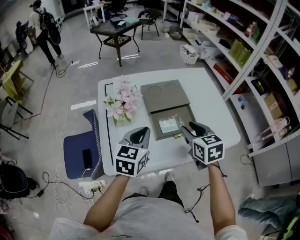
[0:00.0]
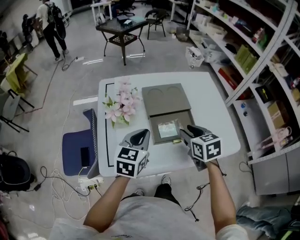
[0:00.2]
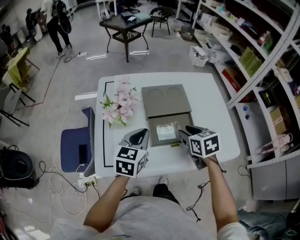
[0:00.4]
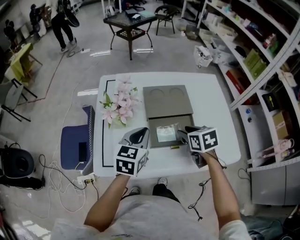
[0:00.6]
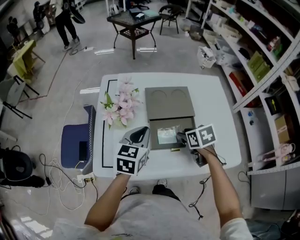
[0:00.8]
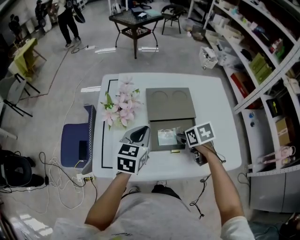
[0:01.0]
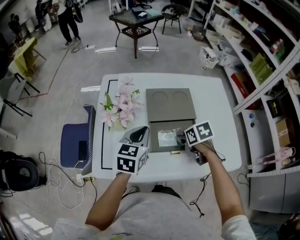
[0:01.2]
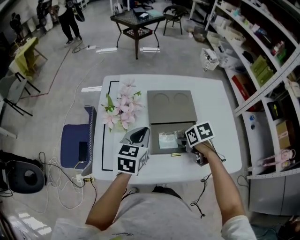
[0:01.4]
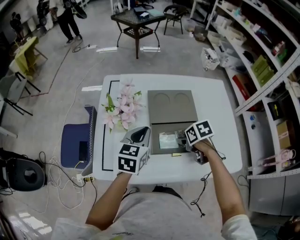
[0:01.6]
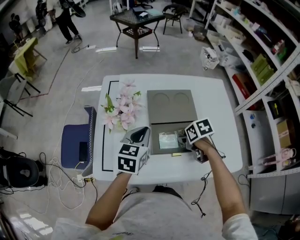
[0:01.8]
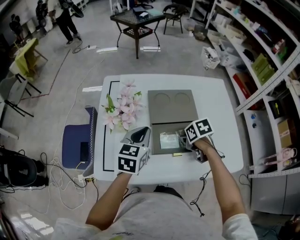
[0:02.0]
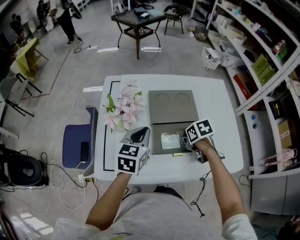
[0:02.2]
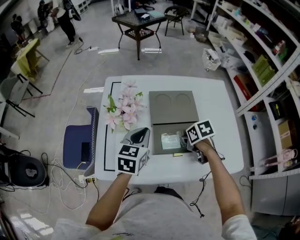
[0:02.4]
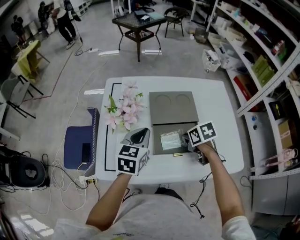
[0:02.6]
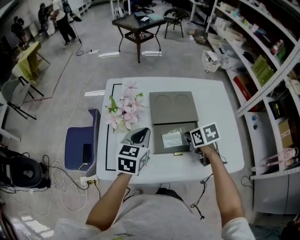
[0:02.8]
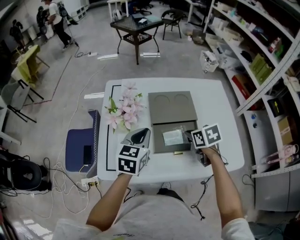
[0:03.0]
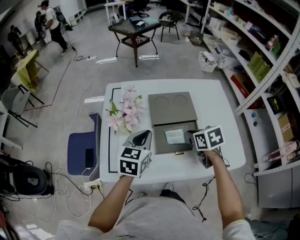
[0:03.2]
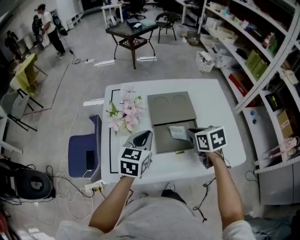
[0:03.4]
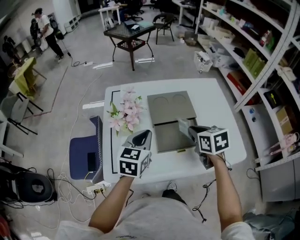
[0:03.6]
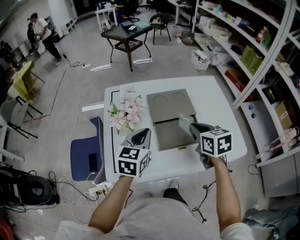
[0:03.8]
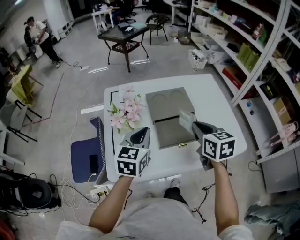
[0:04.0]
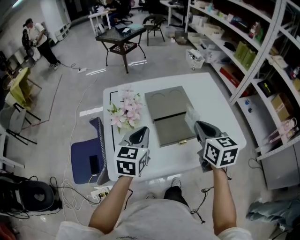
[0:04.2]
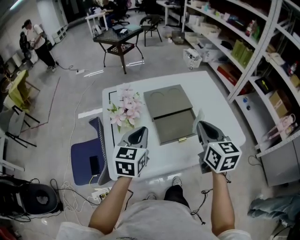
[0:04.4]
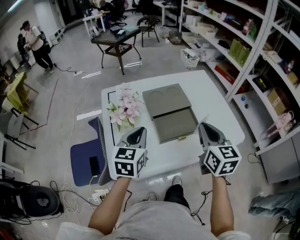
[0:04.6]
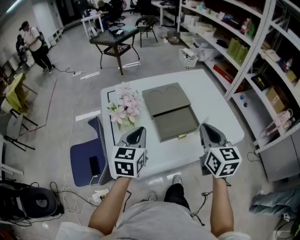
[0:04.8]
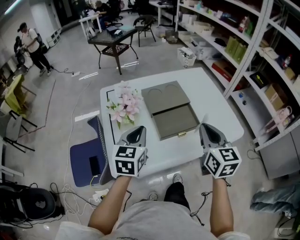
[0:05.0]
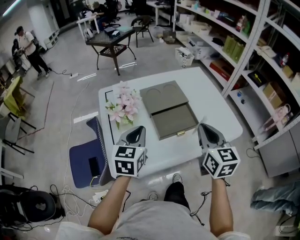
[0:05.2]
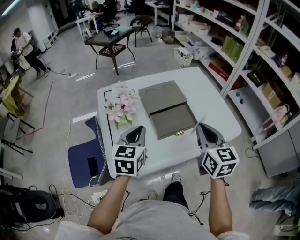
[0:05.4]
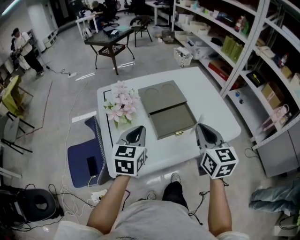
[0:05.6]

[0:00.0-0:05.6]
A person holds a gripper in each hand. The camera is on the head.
0:00.0 to 0:01.4: The left gripper changes place by some 10 cm. Meanwhile the right gripper travels downward by roughly 15 cm, and angles its fingers downward, by roughly 30 degrees.
0:01.4 to 0:02.8: The right gripper closes.
0:02.8 to 0:04.2: The right gripper is displaced upward and backward by some 20 cm, and points its fingers roughly 30 degrees further upward; the left gripper shifts by about 5 cm.
0:04.2 to 0:05.6: The right gripper goes about 5 cm backward.

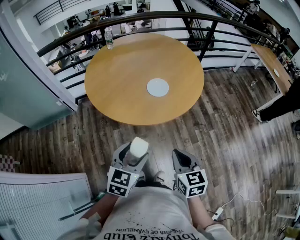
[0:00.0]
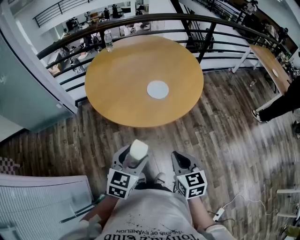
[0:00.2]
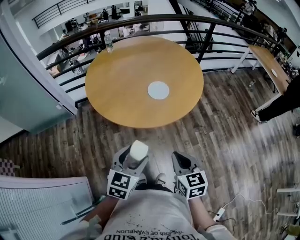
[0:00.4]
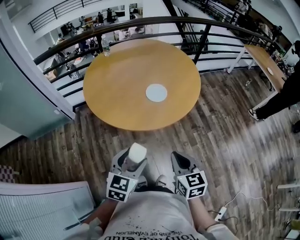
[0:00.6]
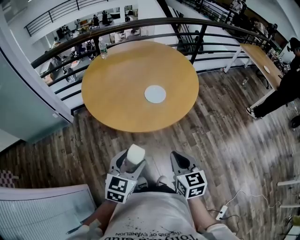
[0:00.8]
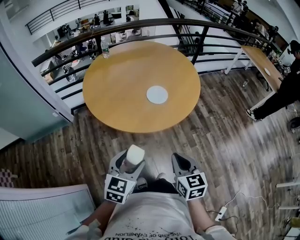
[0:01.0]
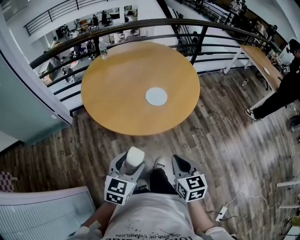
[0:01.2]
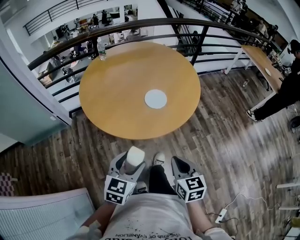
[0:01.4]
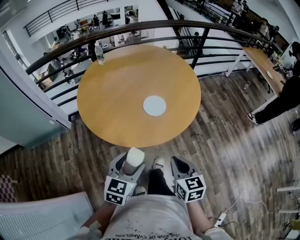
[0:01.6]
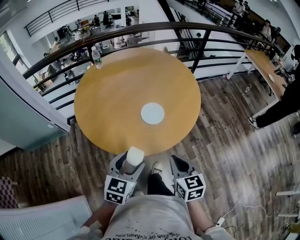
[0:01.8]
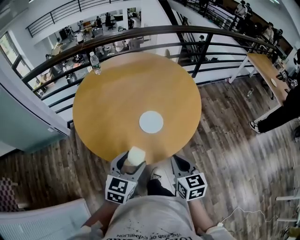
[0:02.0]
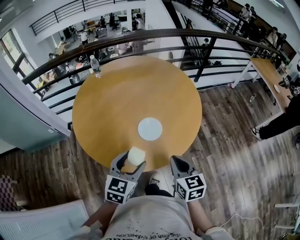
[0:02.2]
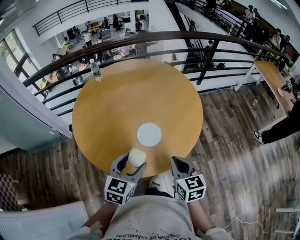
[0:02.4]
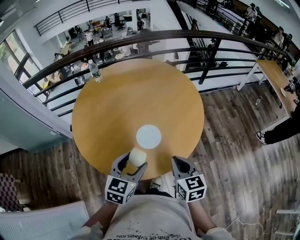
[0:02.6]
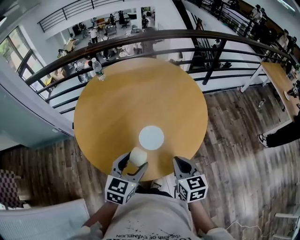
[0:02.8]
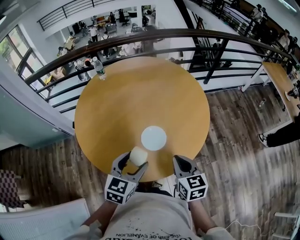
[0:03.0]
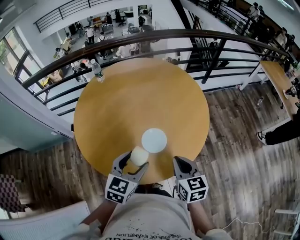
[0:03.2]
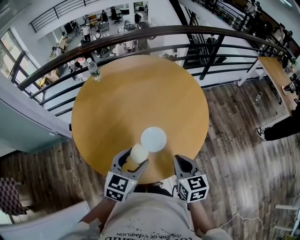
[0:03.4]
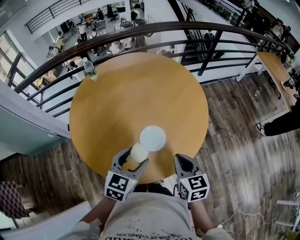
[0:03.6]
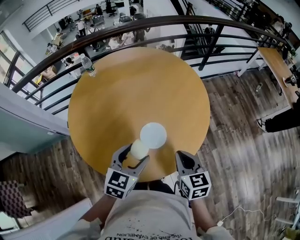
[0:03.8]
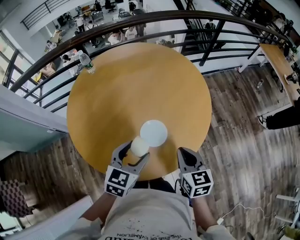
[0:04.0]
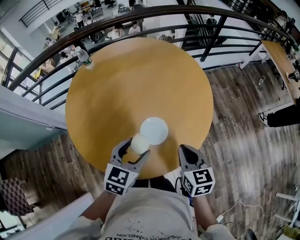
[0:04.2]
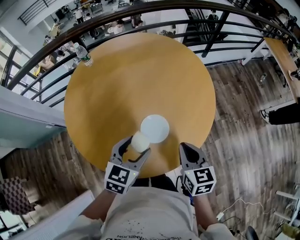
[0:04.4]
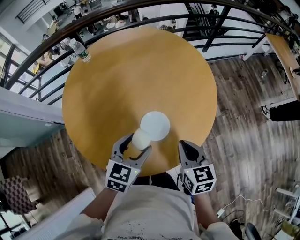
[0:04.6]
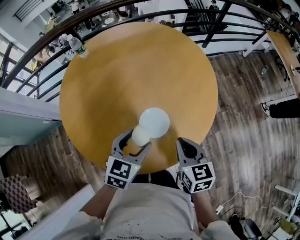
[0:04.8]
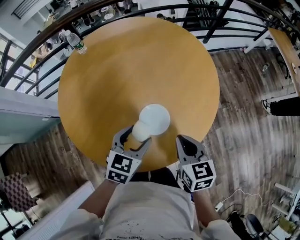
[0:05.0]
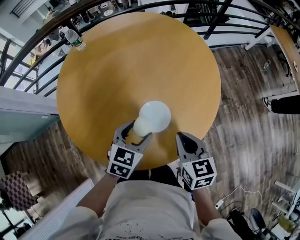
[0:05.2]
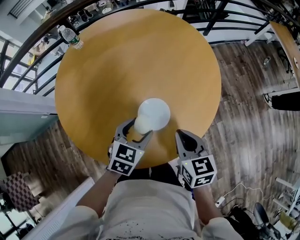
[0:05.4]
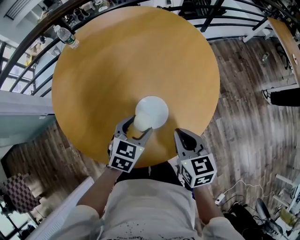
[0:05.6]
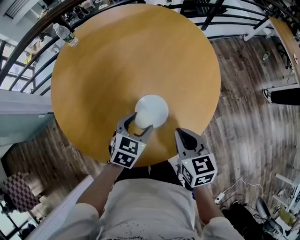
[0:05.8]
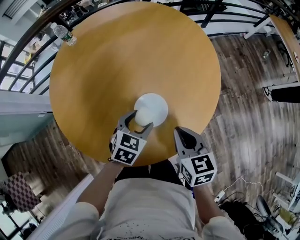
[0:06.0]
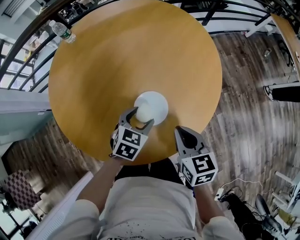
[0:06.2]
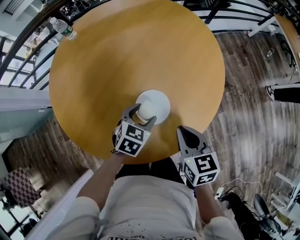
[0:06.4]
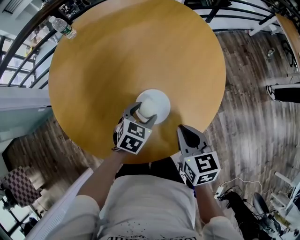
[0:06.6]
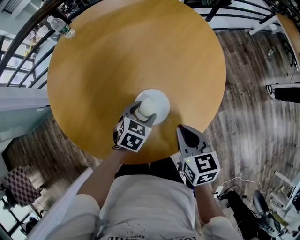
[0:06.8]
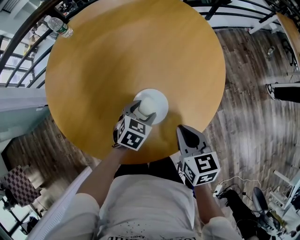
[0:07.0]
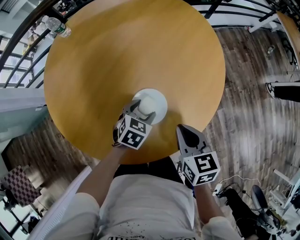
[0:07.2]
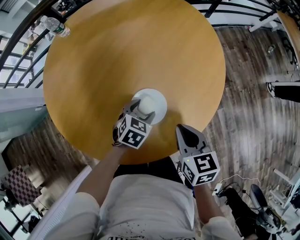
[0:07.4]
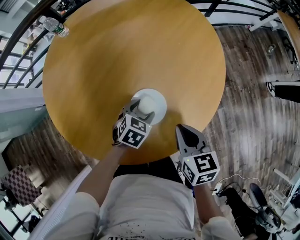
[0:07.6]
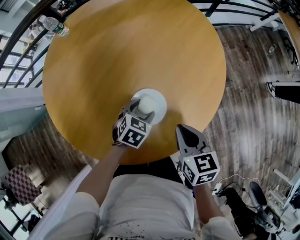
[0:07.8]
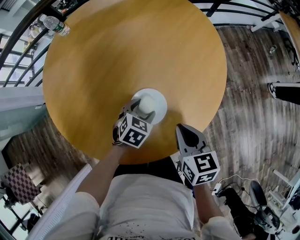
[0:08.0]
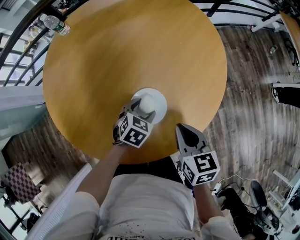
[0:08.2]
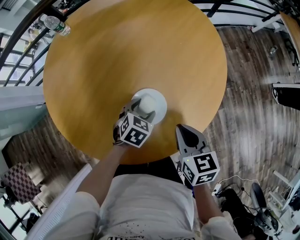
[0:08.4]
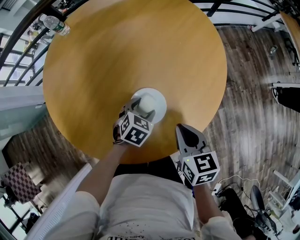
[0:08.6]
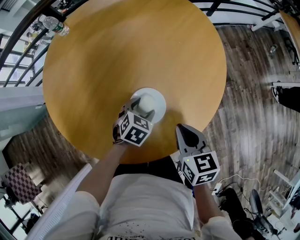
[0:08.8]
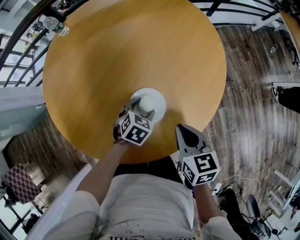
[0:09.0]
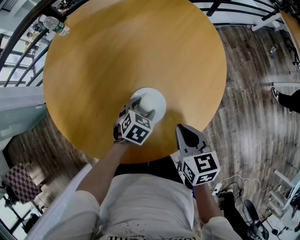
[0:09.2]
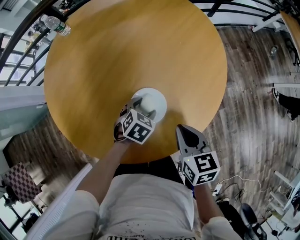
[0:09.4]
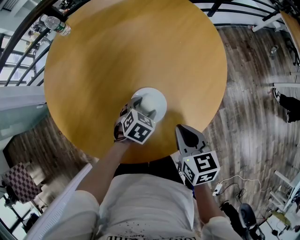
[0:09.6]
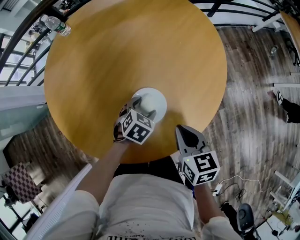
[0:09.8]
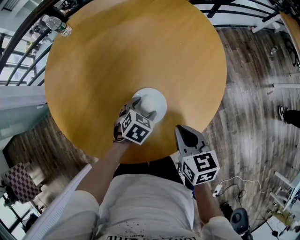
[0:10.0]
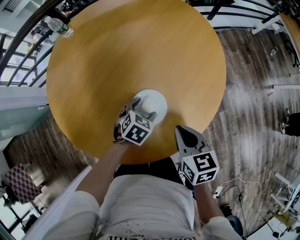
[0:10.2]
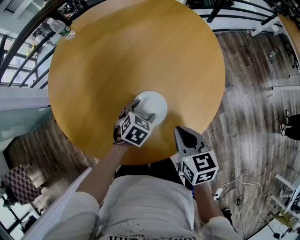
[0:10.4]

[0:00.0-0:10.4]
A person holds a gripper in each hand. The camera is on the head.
0:00.0 to 0:01.4: The left gripper moves approximately 5 cm.
0:01.4 to 0:03.0: The two grippers go about 25 cm forward.
0:03.0 to 0:04.4: The two grippers go about 5 cm forward.
0:04.4 to 0:06.0: The left gripper is displaced downward and forward by some 15 cm; the right gripper travels downward by approximately 5 cm.
0:06.0 to 0:07.4: The left gripper shifts about 10 cm downward.
0:07.4 to 0:10.4: The grippers stay close to where they were, moving slightly.

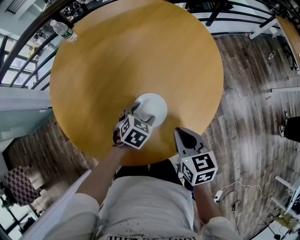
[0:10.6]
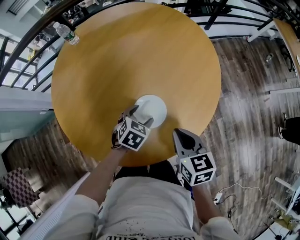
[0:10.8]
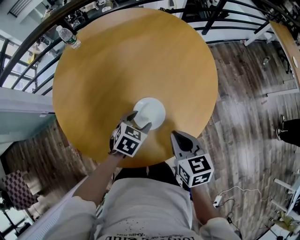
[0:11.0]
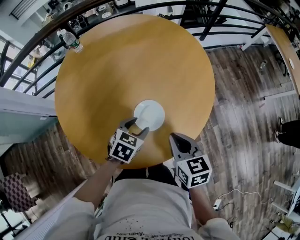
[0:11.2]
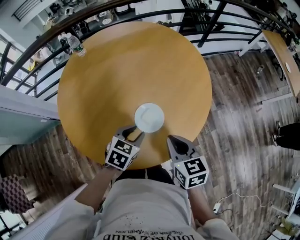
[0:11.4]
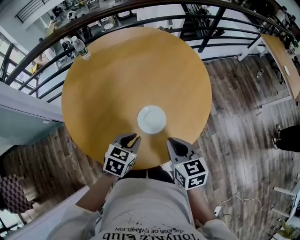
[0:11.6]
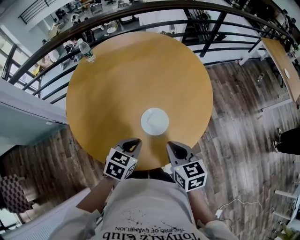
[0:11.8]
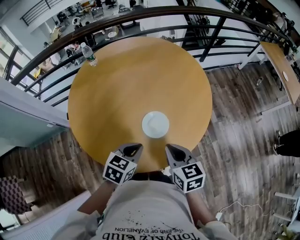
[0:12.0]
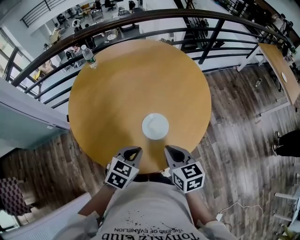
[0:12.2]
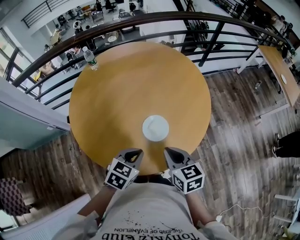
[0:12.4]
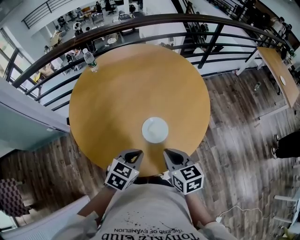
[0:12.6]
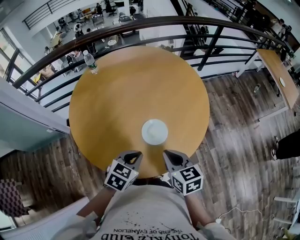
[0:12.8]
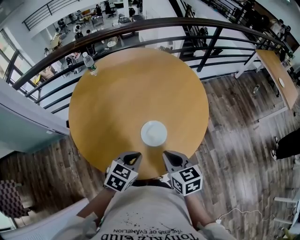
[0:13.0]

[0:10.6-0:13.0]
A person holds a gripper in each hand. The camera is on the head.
0:10.6 to 0:11.8: The right gripper is displaced backward, upward and to the left by about 10 cm; the left gripper goes some 20 cm upward, backward and to the left, and closes its fingers.
0:11.8 to 0:13.0: The grippers move only a little.

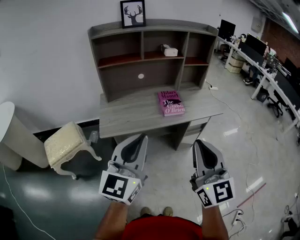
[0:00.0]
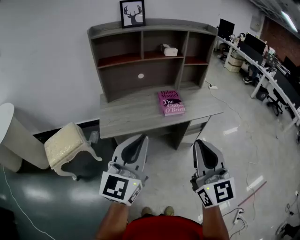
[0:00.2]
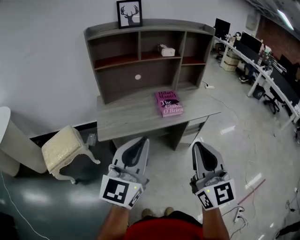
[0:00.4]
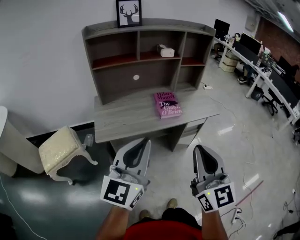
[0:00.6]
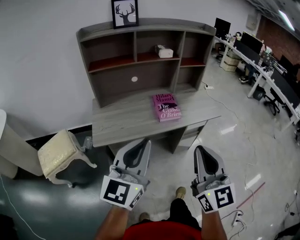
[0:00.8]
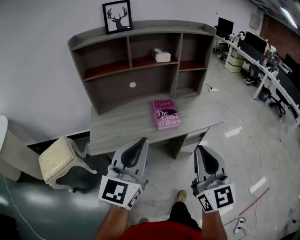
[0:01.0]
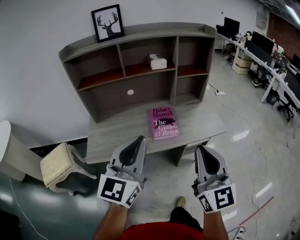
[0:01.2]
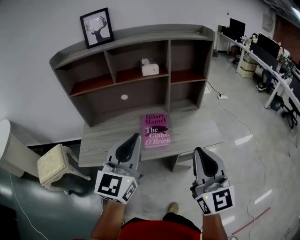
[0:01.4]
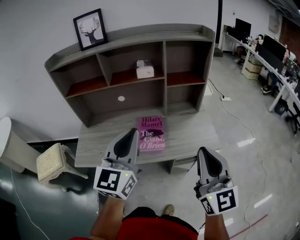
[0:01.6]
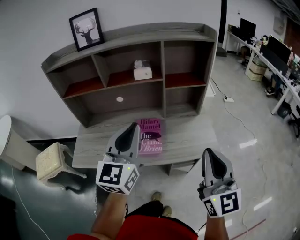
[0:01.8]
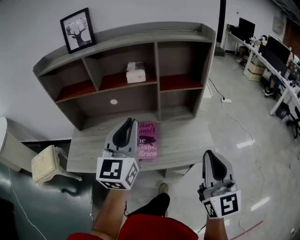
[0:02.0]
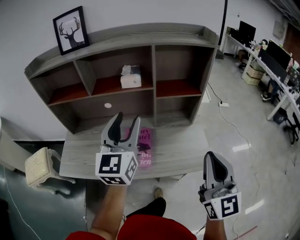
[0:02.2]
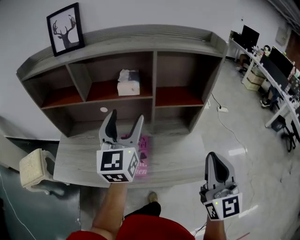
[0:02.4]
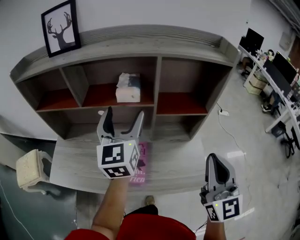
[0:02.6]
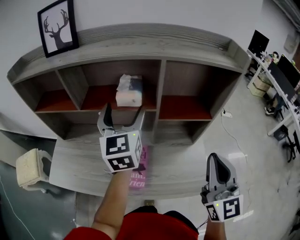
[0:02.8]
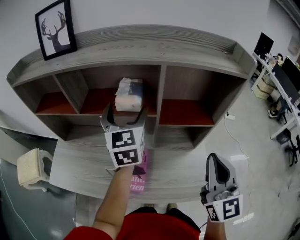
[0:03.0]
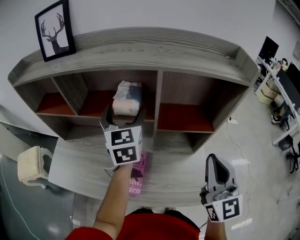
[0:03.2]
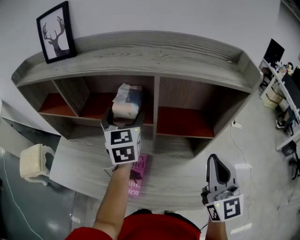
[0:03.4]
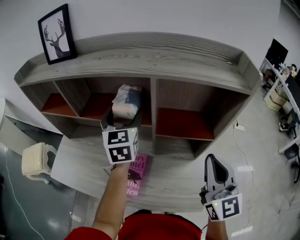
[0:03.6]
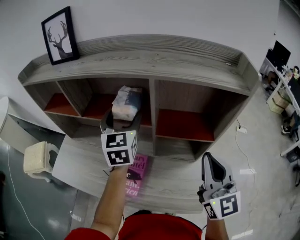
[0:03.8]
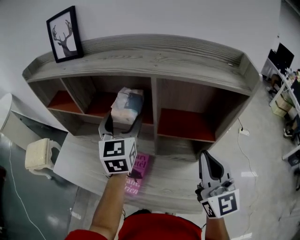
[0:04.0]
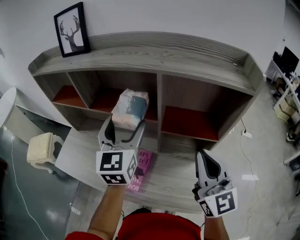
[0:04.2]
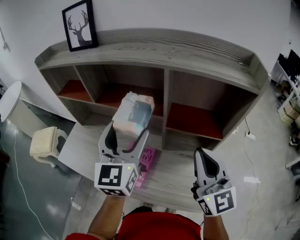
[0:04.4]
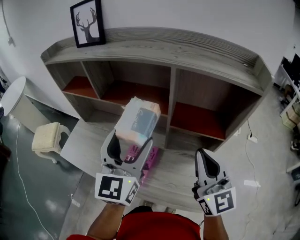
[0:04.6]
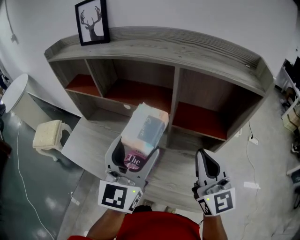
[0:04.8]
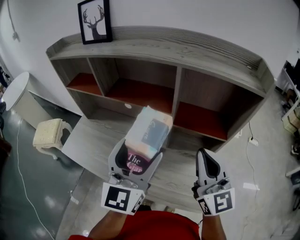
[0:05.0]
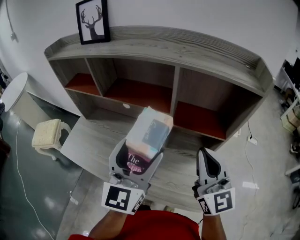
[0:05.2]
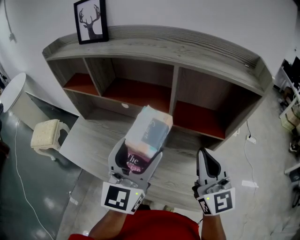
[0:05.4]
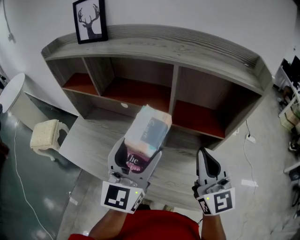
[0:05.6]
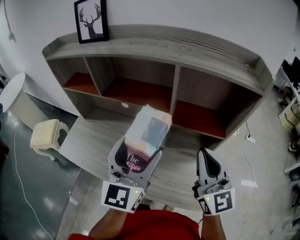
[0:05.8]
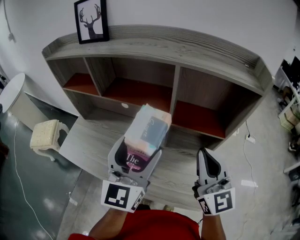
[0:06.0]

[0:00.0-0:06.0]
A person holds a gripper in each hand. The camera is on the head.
0:00.0 to 0:01.6: Both grippers travel together forward and to the right, about 35 cm.
0:01.6 to 0:03.0: The left gripper goes about 40 cm forward, swivels some 30 degrees, and opens its fingers, while the right gripper goes approximately 30 cm forward and to the right.
0:03.0 to 0:04.4: The right gripper heads forward, covering about 5 cm, and rotates approximately 20 degrees, while the left gripper goes approximately 10 cm backward.
0:04.4 to 0:06.0: The left gripper shifts about 5 cm backward.
